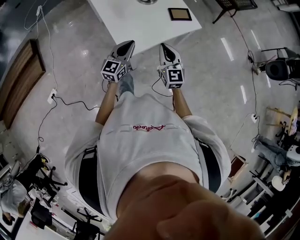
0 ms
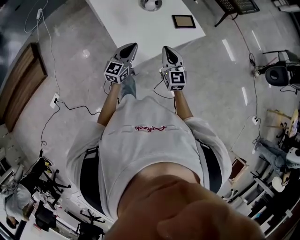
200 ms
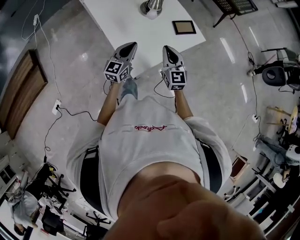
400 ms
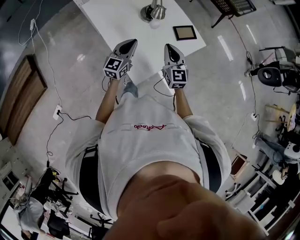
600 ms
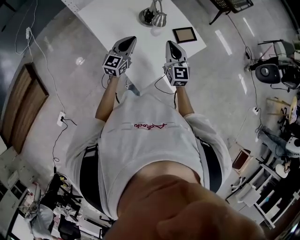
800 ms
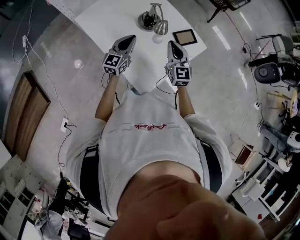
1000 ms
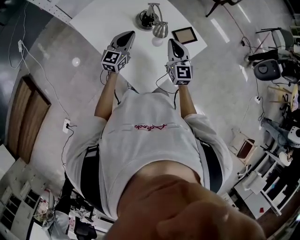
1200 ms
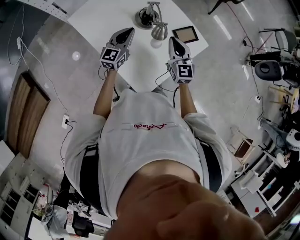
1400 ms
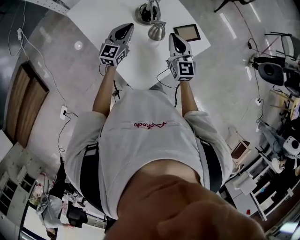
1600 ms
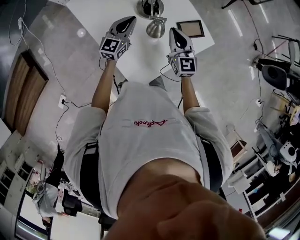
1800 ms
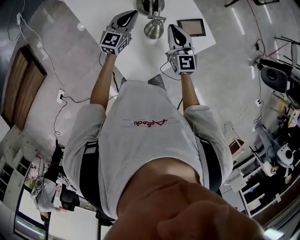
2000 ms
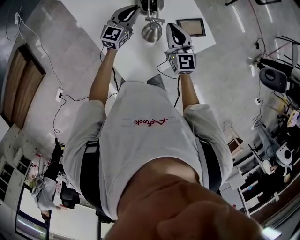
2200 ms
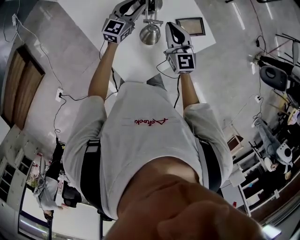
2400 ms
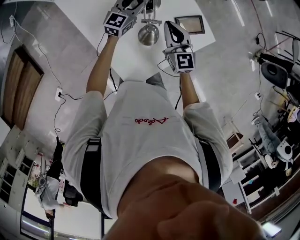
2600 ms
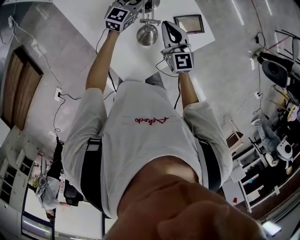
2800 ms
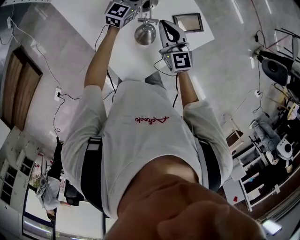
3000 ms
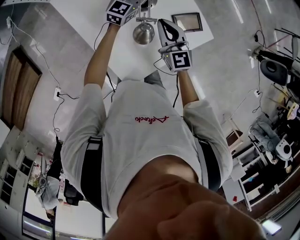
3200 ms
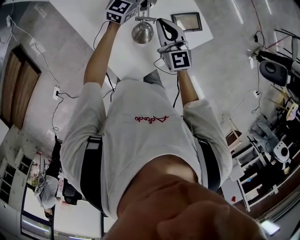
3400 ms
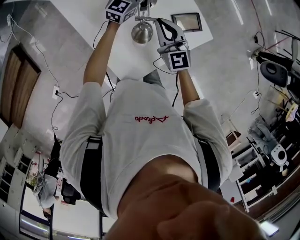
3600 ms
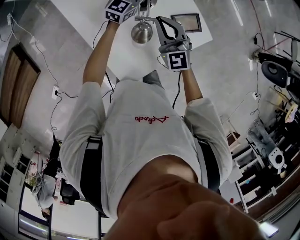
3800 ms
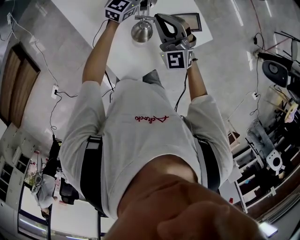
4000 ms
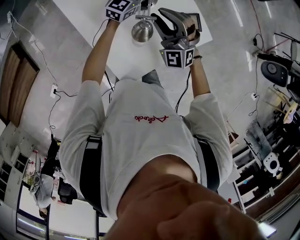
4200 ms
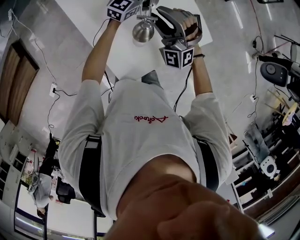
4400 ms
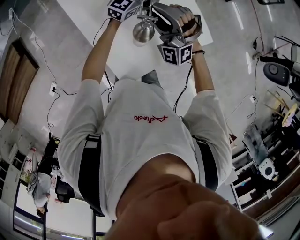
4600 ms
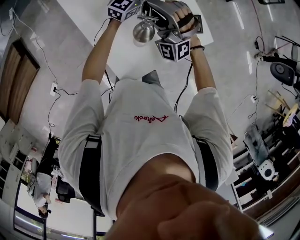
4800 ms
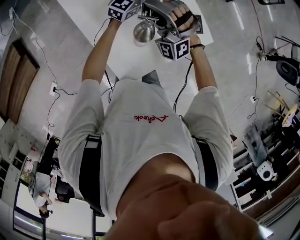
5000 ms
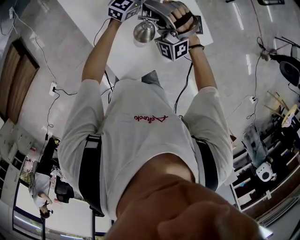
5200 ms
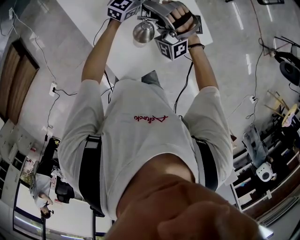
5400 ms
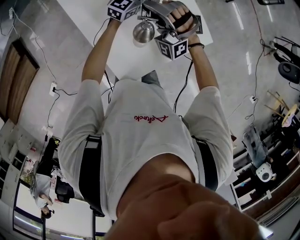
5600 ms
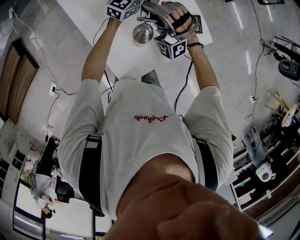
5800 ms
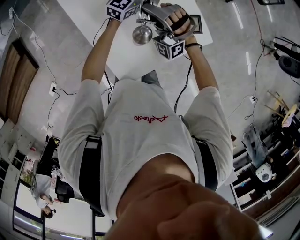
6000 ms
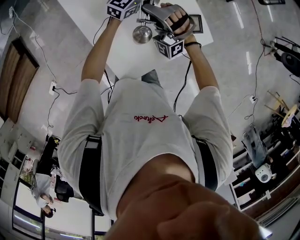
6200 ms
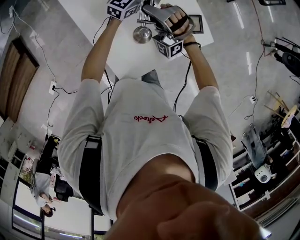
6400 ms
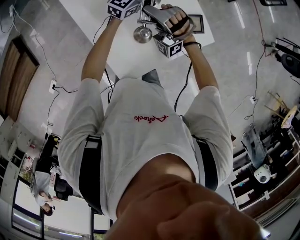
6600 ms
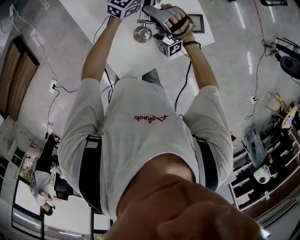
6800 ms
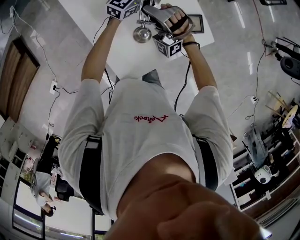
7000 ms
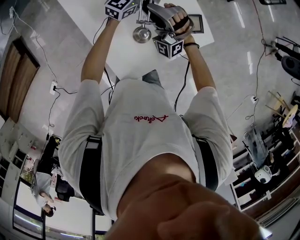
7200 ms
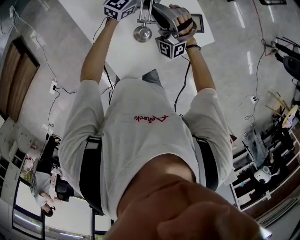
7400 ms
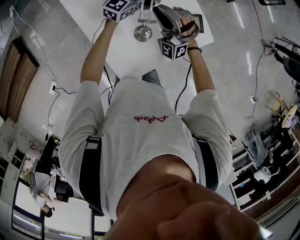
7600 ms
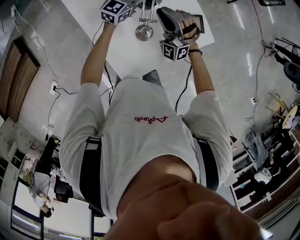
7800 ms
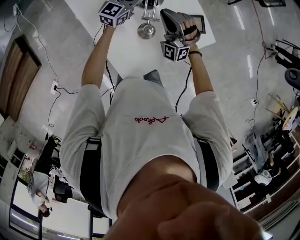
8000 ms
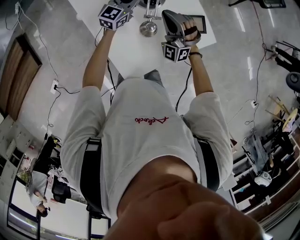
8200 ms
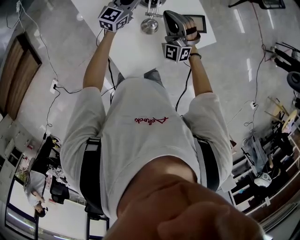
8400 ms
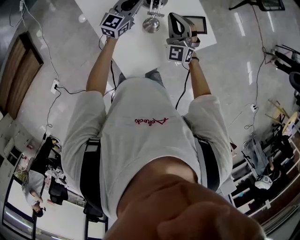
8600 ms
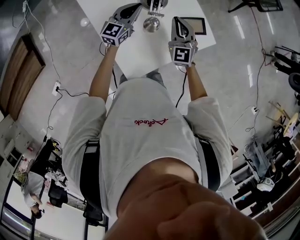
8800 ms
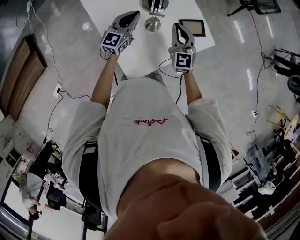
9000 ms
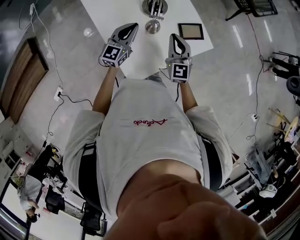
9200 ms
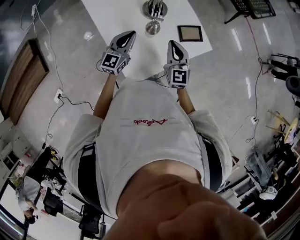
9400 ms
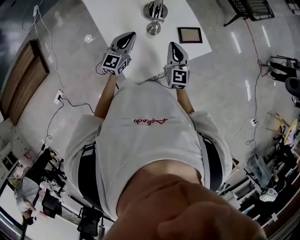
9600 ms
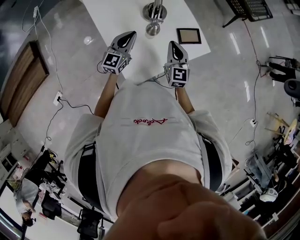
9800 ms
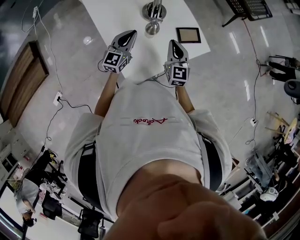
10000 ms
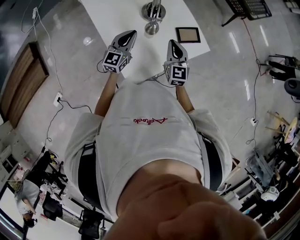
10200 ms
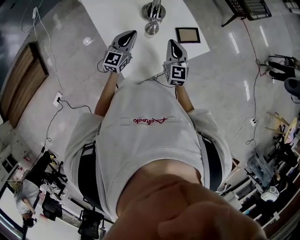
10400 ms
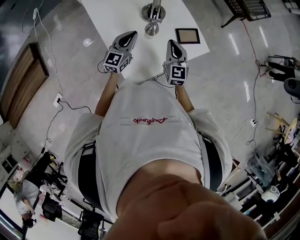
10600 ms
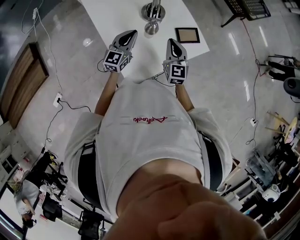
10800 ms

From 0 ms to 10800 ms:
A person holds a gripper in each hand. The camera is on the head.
From 0 ms to 1600 ms: Both grippers travel together forward, some 25 cm.
From 1600 ms to 3000 ms: The left gripper travels forward and to the right by roughly 15 cm, and opens up.
From 3000 ms to 4600 ms: The right gripper travels to the left and upward by some 10 cm, rolls counterclockwise, seen from behind, by about 70 degrees, and opens up.
From 4600 ms to 6200 ms: The right gripper closes its fingers.
From 6200 ms to 7800 ms: The right gripper changes place by some 5 cm.
From 7800 ms to 9200 ms: The right gripper shifts about 10 cm backward, and rolls clockwise, seen from behind, by about 60 degrees. Meanwhile the left gripper moves backward, roughly 20 cm, and closes.
From 9200 ms to 10800 ms: There are only small adjustments of the grippers.

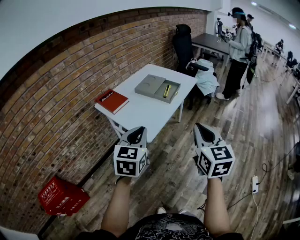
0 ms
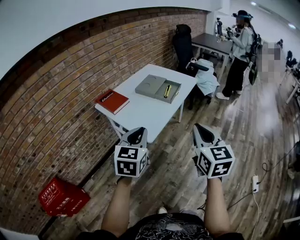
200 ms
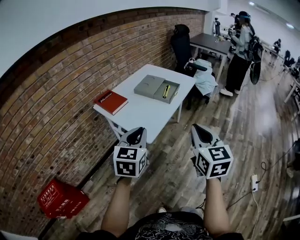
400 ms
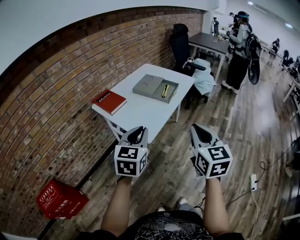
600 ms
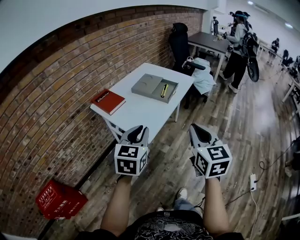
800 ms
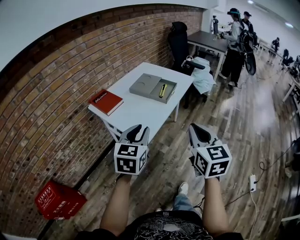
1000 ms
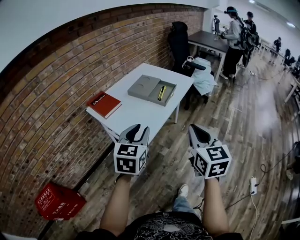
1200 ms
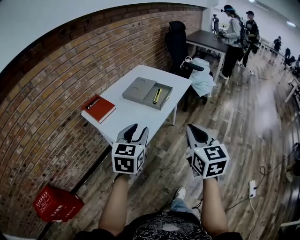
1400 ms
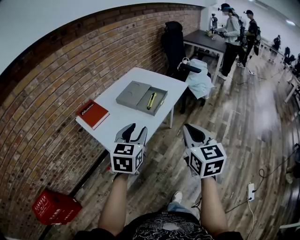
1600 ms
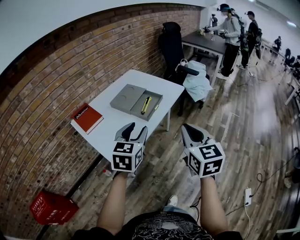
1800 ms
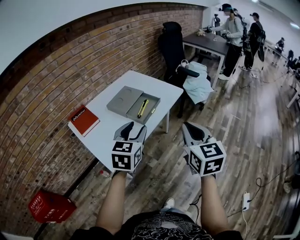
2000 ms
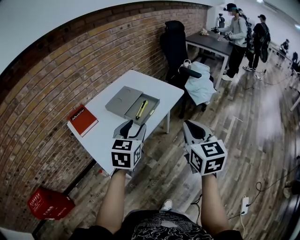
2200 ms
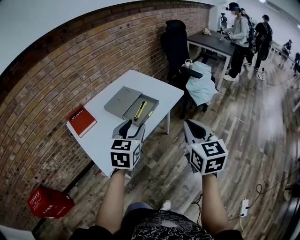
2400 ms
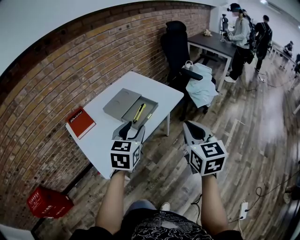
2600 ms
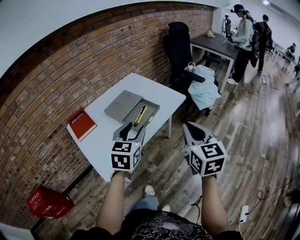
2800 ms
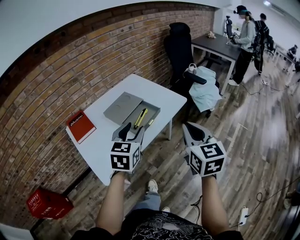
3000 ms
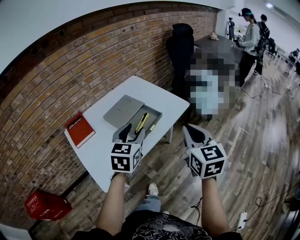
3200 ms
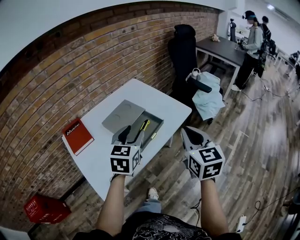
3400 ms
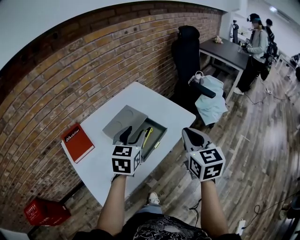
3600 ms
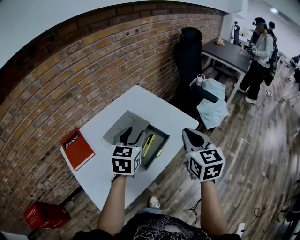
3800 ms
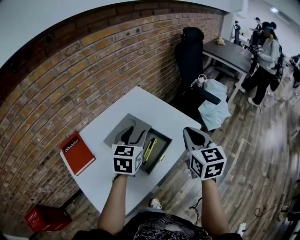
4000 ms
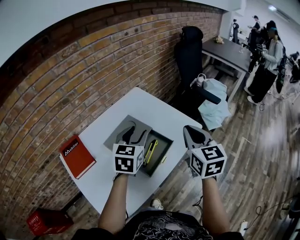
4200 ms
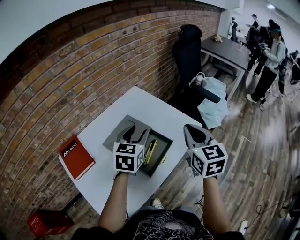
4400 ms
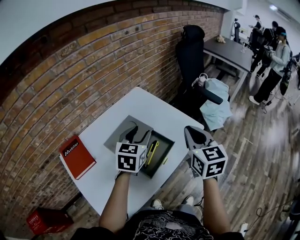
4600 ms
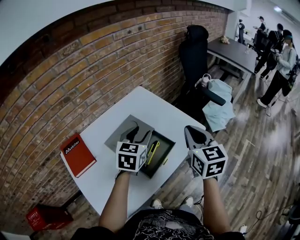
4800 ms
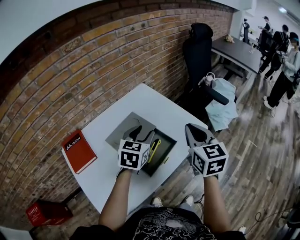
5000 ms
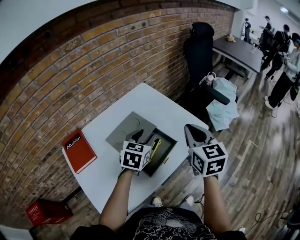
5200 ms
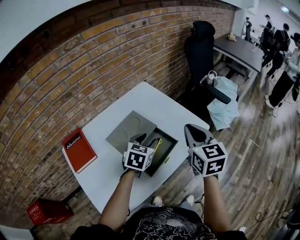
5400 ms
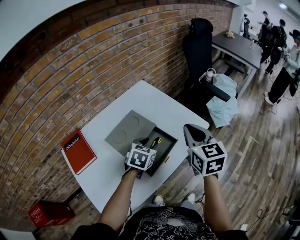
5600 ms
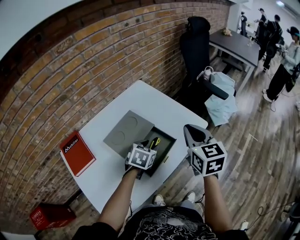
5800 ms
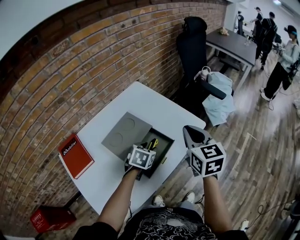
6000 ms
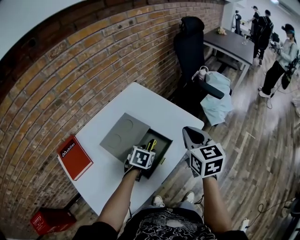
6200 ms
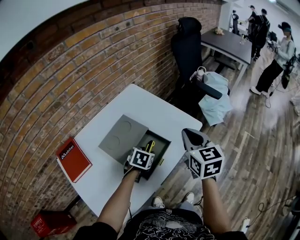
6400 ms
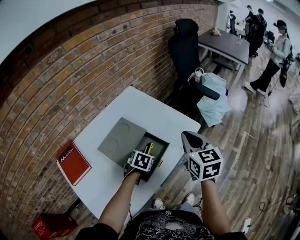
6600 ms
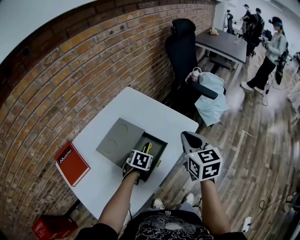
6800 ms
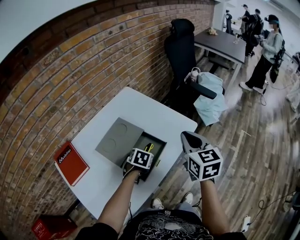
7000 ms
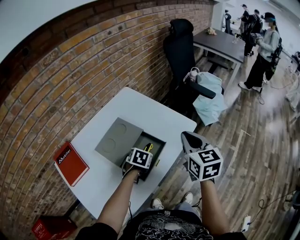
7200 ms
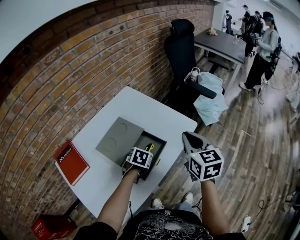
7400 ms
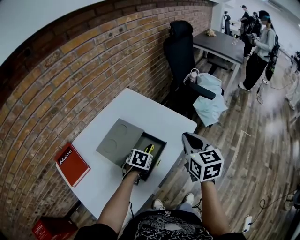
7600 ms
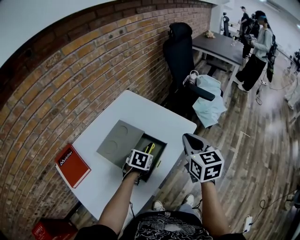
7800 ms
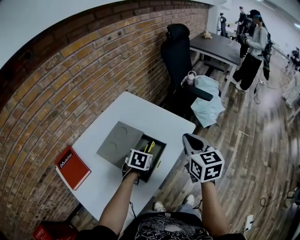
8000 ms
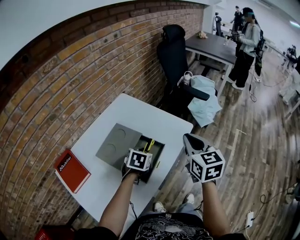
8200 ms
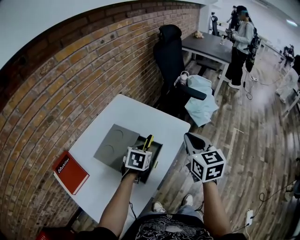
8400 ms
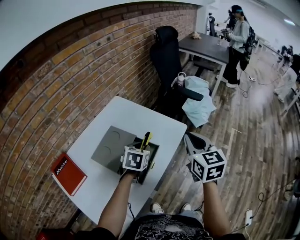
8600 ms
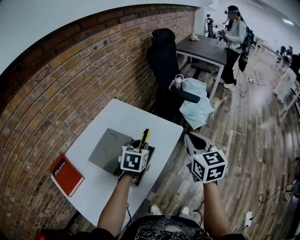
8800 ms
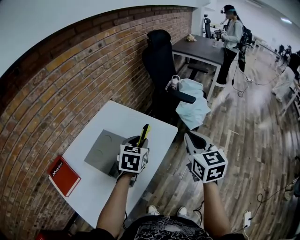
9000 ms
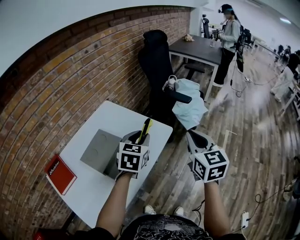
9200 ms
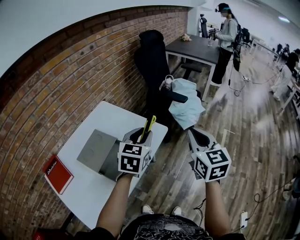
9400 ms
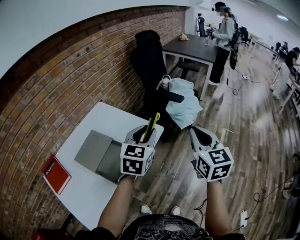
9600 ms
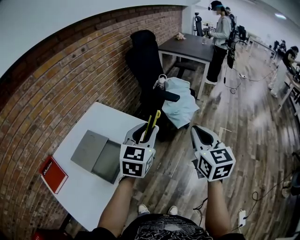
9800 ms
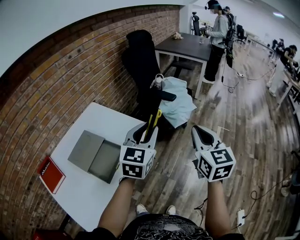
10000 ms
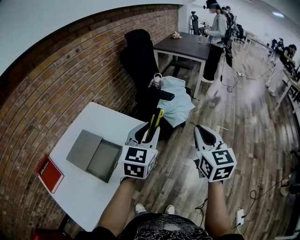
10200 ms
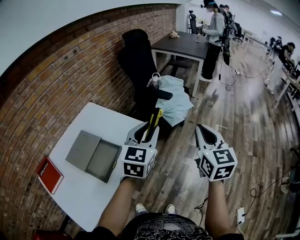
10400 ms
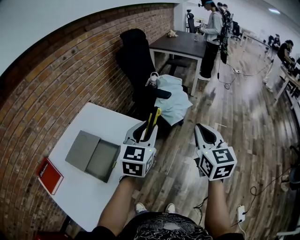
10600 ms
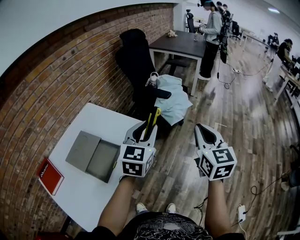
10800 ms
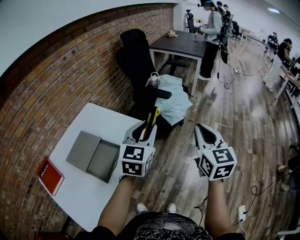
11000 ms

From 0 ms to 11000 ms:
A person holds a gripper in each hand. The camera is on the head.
From 0 ms to 1600 ms: Both grippers move forward and to the right, some 15 cm. The left gripper opens up.
From 1600 ms to 3200 ms: Both grippers travel together forward and to the right, approximately 25 cm.
From 3200 ms to 4800 ms: The grippers both shift forward by roughly 20 cm.
From 4800 ms to 6200 ms: The left gripper moves downward, about 20 cm, and swivels approximately 30 degrees.
From 6200 ms to 7800 ms: The grippers make only small movements.
From 7800 ms to 9400 ms: The right gripper heads to the right and upward, covering some 20 cm. Meanwhile the left gripper heads upward and to the right, covering some 30 cm, and tips its fingers upward by roughly 30 degrees.
From 9400 ms to 11000 ms: The two grippers go approximately 10 cm to the right.

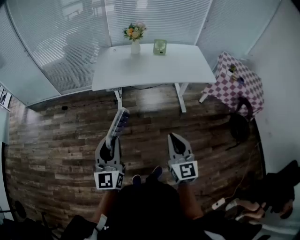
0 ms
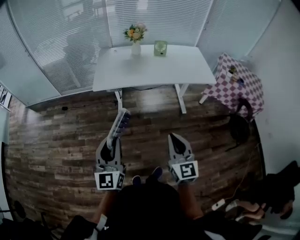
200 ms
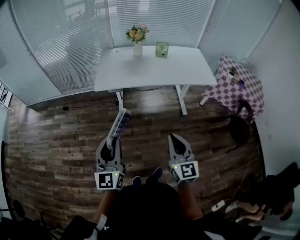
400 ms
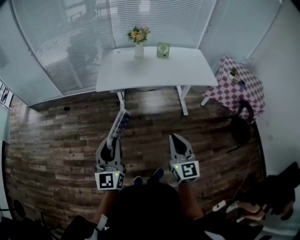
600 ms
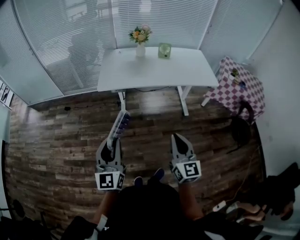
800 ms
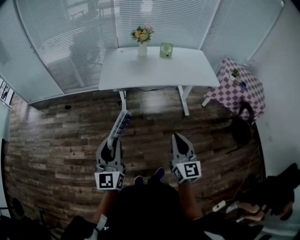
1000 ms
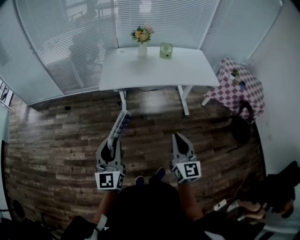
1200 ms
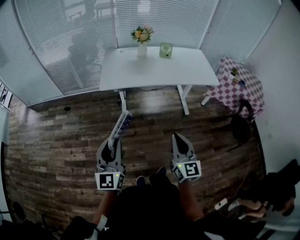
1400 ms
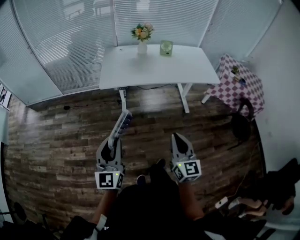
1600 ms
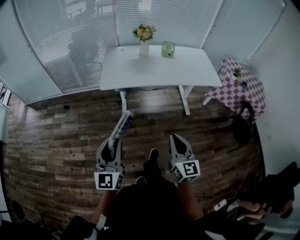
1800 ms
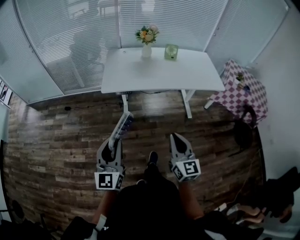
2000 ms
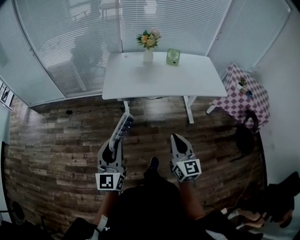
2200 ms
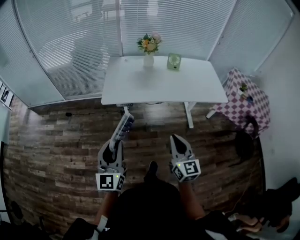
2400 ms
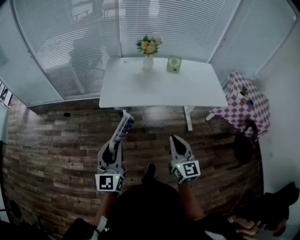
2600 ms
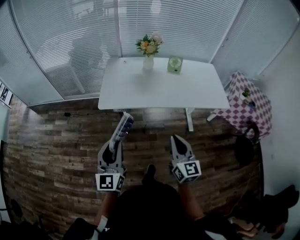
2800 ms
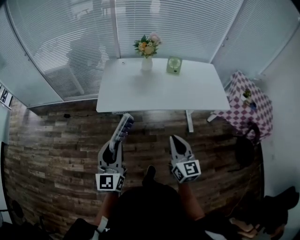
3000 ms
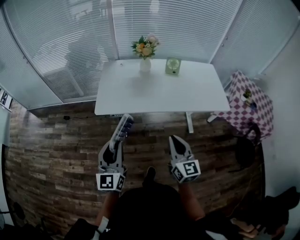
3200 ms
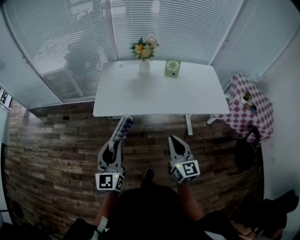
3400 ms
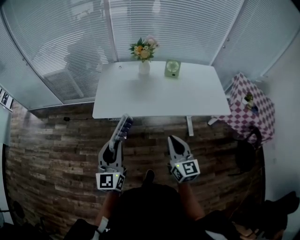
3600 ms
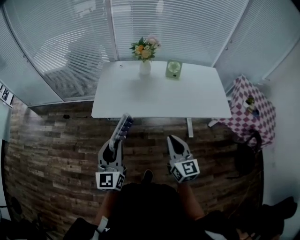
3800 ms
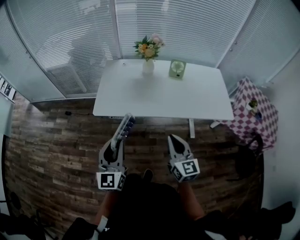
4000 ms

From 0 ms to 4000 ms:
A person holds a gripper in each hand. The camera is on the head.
From 0 ms to 1400 ms: The left gripper heads to the left, covering about 5 cm.
From 1400 ms to 2600 ms: The two grippers go some 15 cm forward.
From 2600 ms to 4000 ms: The two grippers go roughly 15 cm forward and to the right.
